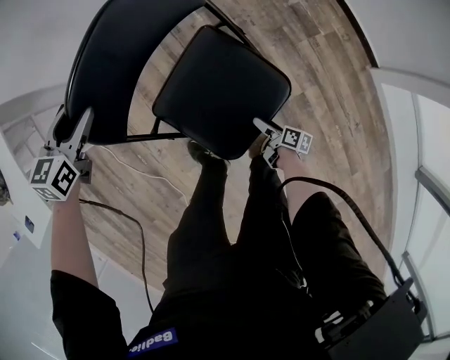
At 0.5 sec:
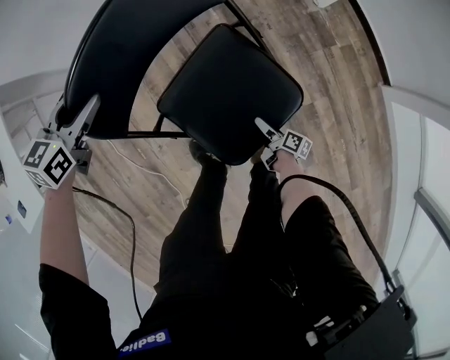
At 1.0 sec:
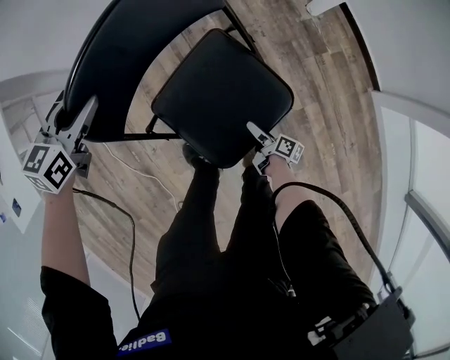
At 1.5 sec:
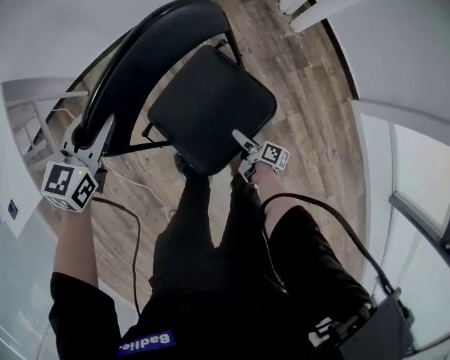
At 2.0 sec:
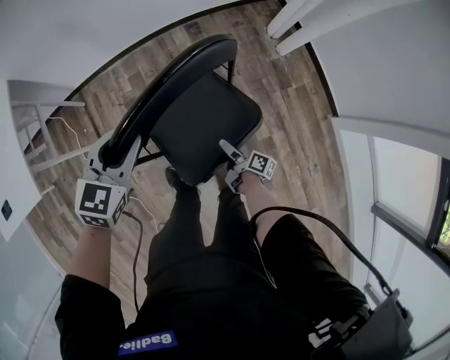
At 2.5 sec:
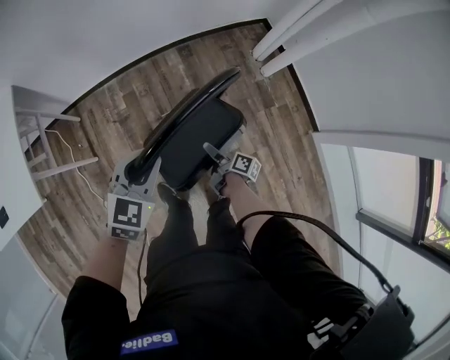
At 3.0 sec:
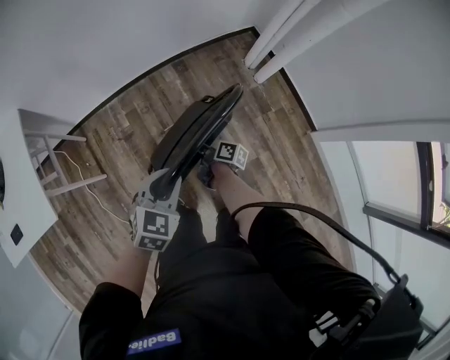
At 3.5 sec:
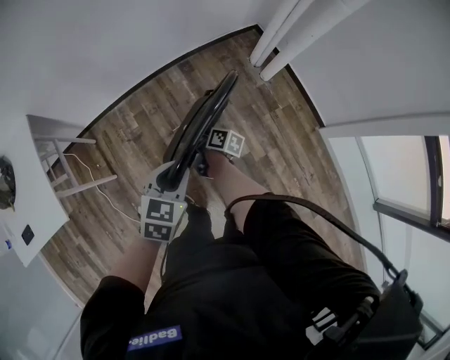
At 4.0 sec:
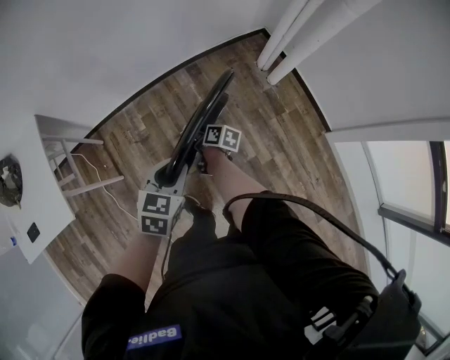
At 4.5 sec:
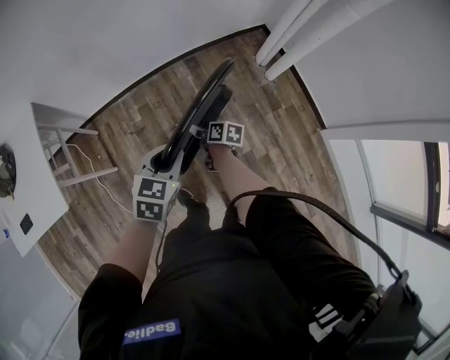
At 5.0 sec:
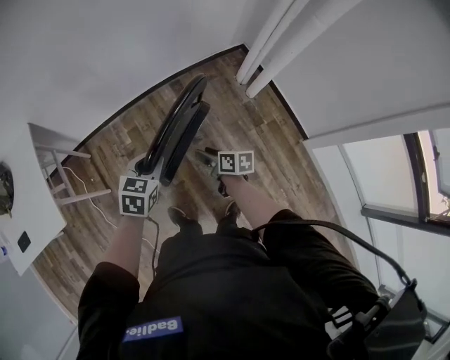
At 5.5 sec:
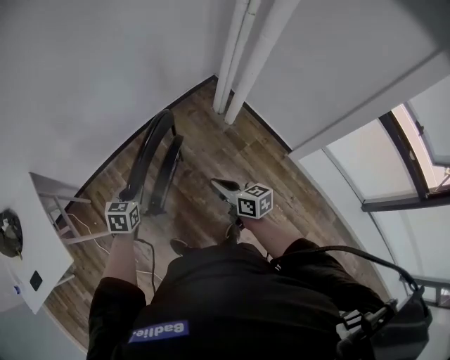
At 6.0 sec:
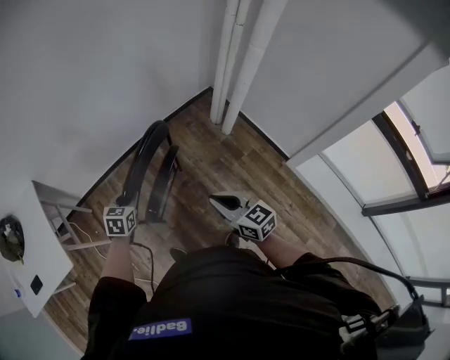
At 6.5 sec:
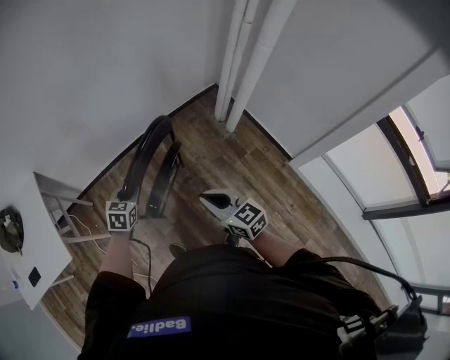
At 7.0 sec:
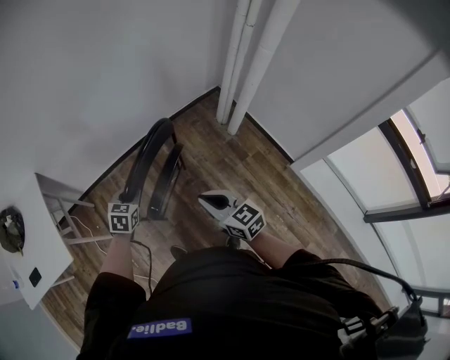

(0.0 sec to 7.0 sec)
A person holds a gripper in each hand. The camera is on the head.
0.0 sec - 2.0 sec: The right gripper heads upward, covering roughly 20 cm; the left gripper heads upward, backward and to the right, covering roughly 15 cm, and closes up.
2.0 sec - 3.5 sec: The right gripper shifts about 25 cm upward, forward and to the left, while the left gripper heads to the right, upward and backward, covering some 10 cm.
3.5 sec - 5.0 sec: The left gripper travels to the left by some 5 cm. The right gripper moves upward and backward, about 10 cm, and rotates about 30 degrees.
5.0 sec - 7.0 sec: The right gripper goes about 25 cm upward and backward, rolls counterclockwise, seen from behind, by roughly 40 degrees, and closes.

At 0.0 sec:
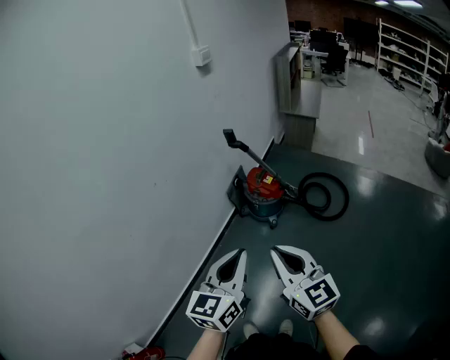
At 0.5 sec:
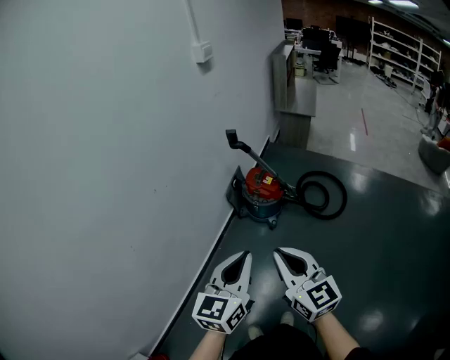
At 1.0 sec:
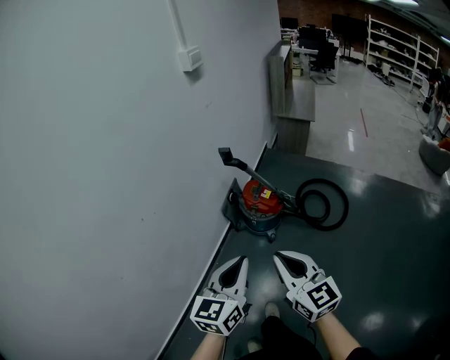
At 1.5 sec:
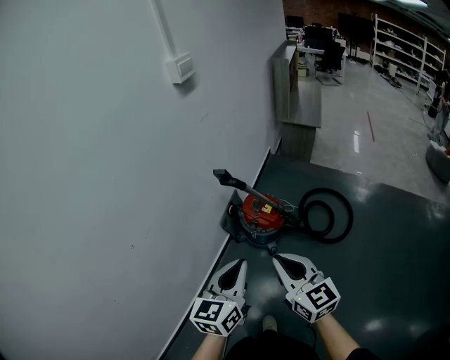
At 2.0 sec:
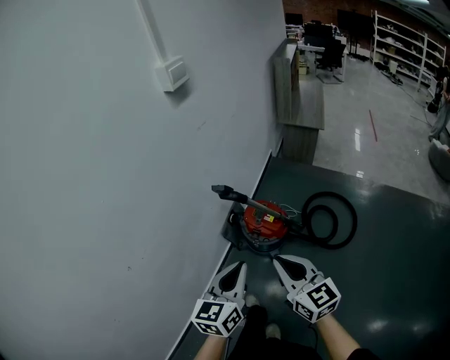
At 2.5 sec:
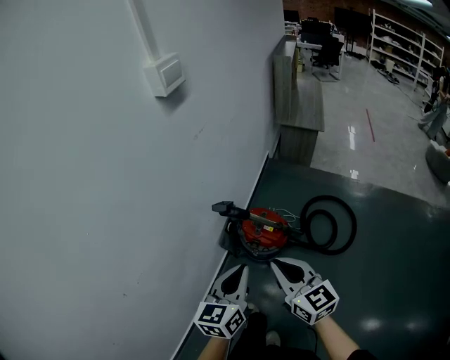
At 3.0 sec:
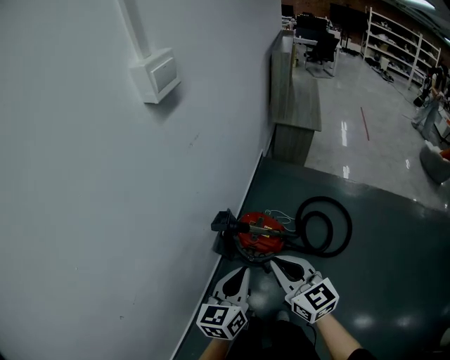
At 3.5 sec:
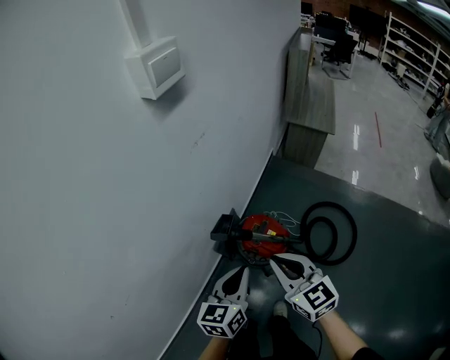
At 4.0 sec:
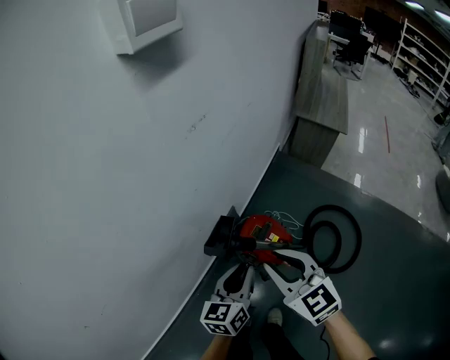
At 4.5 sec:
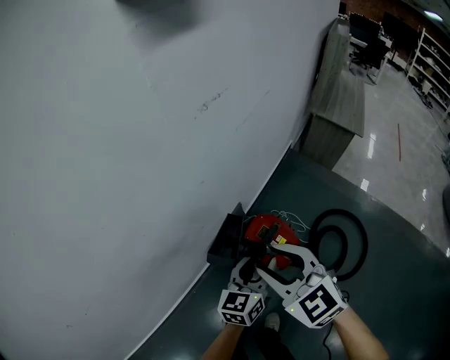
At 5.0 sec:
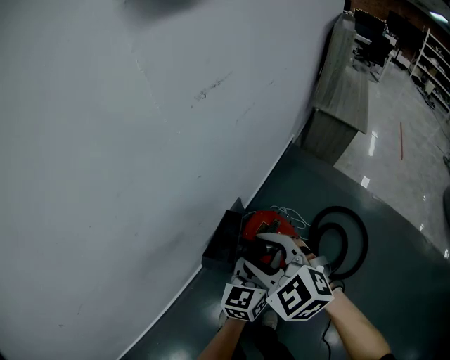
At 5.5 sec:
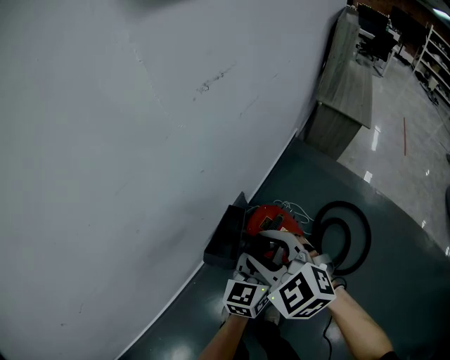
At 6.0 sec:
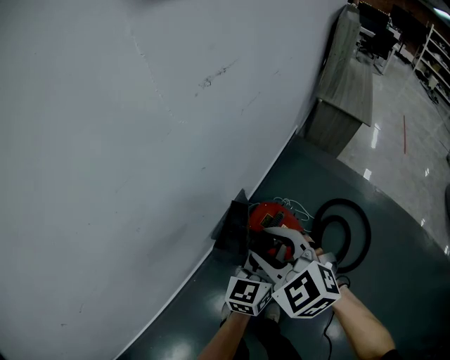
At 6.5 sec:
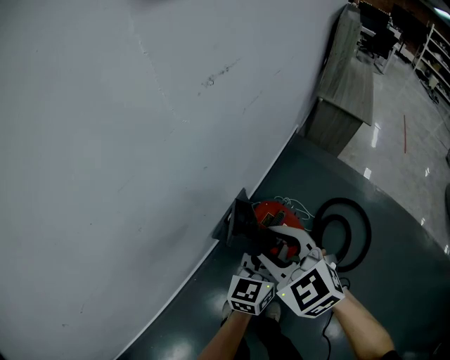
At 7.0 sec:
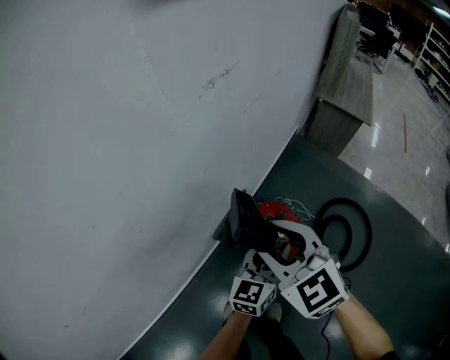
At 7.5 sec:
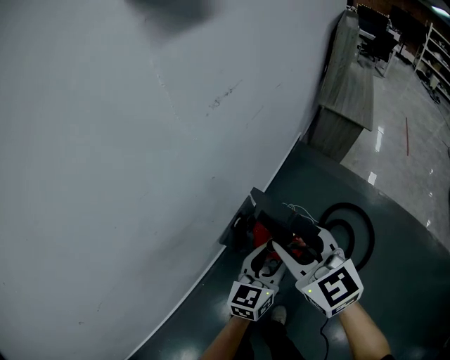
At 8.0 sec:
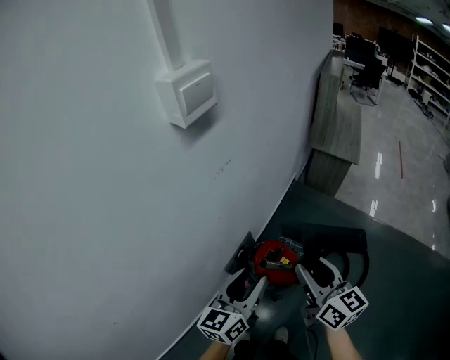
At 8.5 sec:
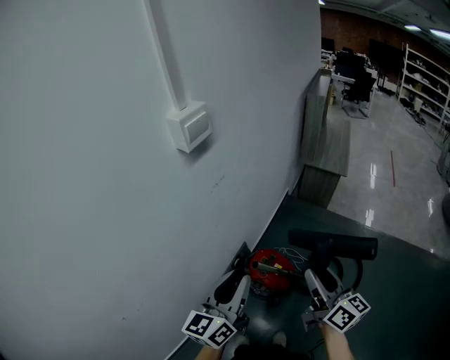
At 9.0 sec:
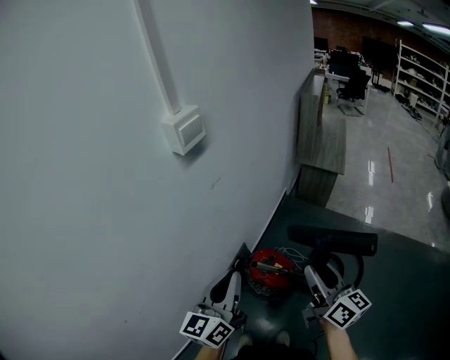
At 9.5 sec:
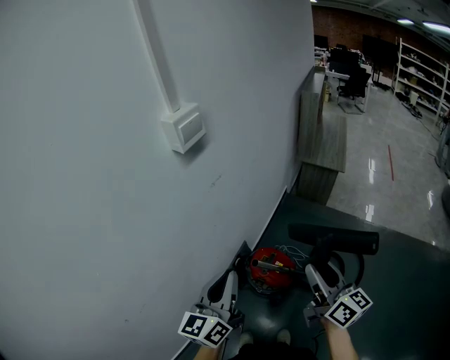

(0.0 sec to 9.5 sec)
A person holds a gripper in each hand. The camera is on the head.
0.0 sec - 2.0 sec: Both grippers move forward, approximately 35 cm.
2.0 sec - 4.0 sec: Both grippers move forward and downward, some 30 cm. The right gripper changes its angle by approximately 30 degrees.
4.0 sec - 5.5 sec: The left gripper goes some 10 cm to the right, forward and downward, and opens. The right gripper shifts about 10 cm downward and forward, rotates roughly 30 degrees, and opens its fingers.
5.5 sec - 7.5 sec: The right gripper moves upward, roughly 10 cm, and swivels about 30 degrees.
7.5 sec - 9.5 sec: The left gripper shifts about 30 cm upward, and closes its fingers. The right gripper goes about 25 cm upward, to the right and backward, and changes its angle by approximately 50 degrees.

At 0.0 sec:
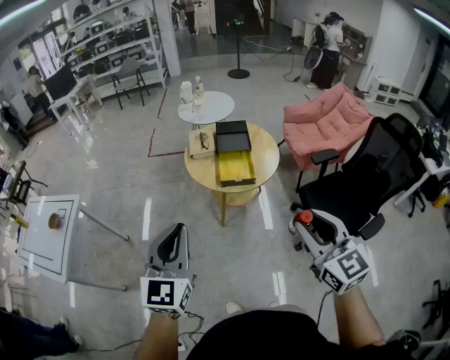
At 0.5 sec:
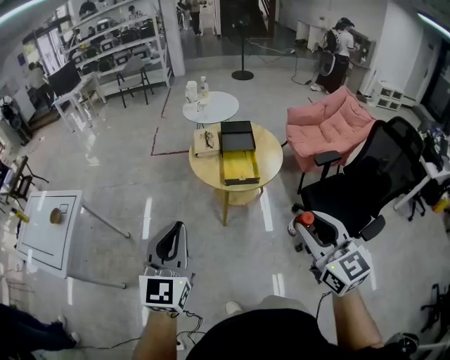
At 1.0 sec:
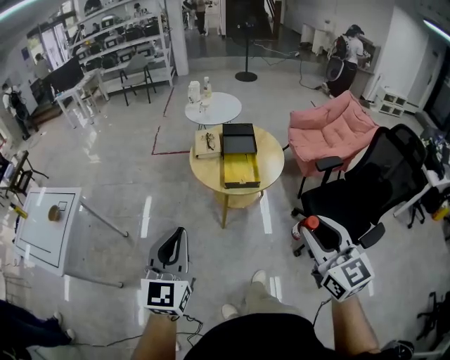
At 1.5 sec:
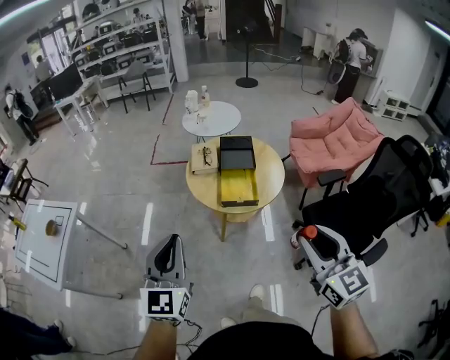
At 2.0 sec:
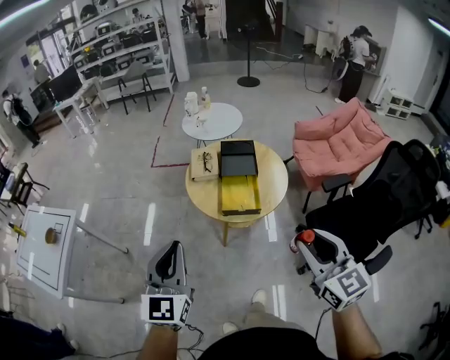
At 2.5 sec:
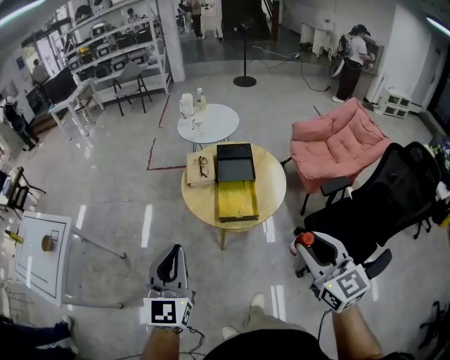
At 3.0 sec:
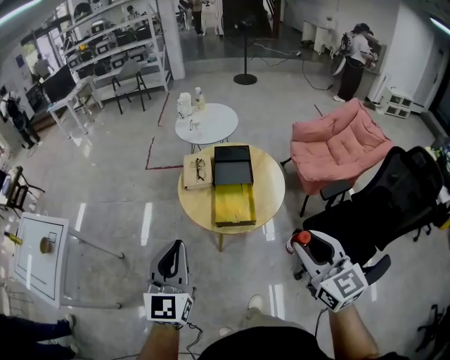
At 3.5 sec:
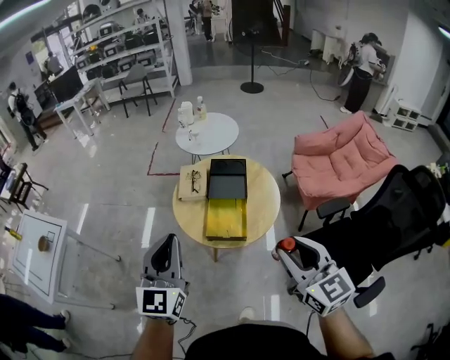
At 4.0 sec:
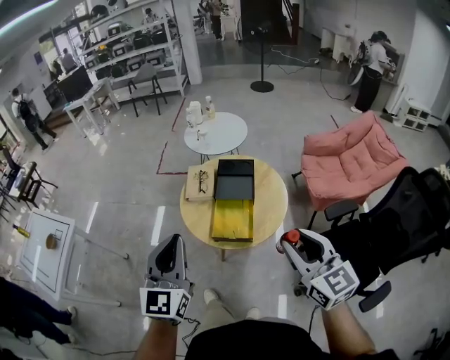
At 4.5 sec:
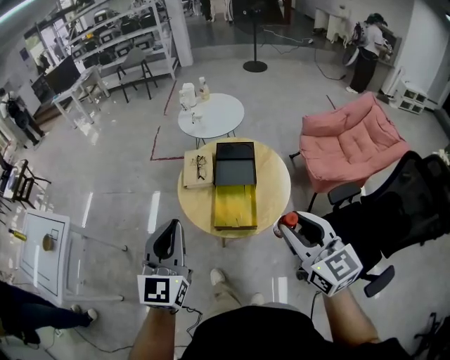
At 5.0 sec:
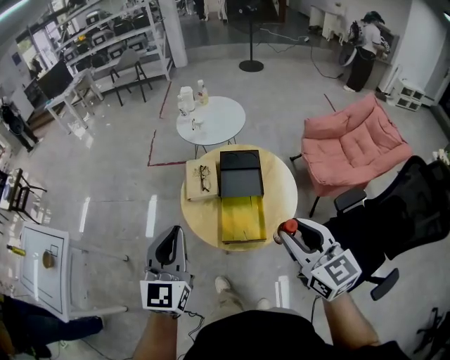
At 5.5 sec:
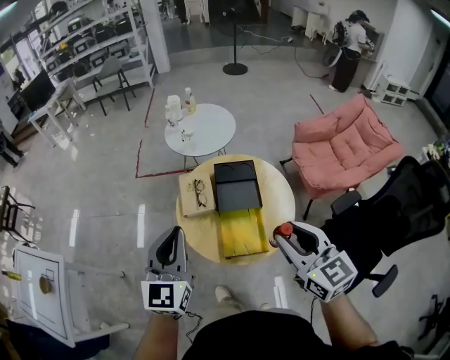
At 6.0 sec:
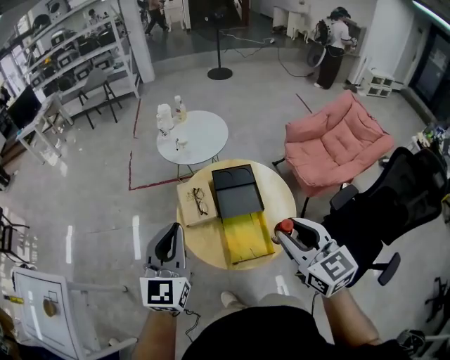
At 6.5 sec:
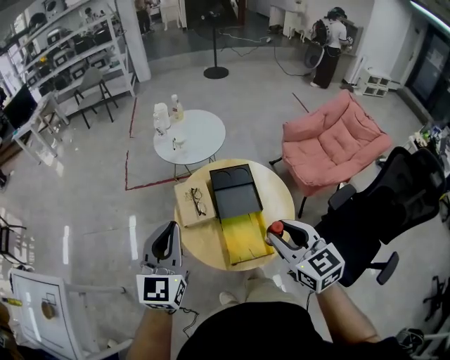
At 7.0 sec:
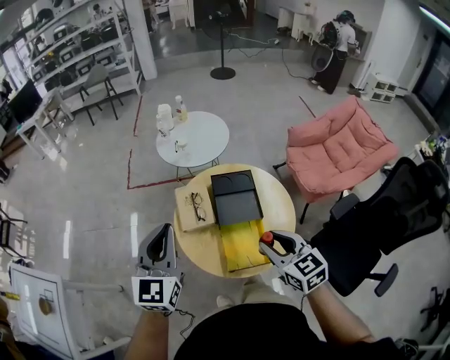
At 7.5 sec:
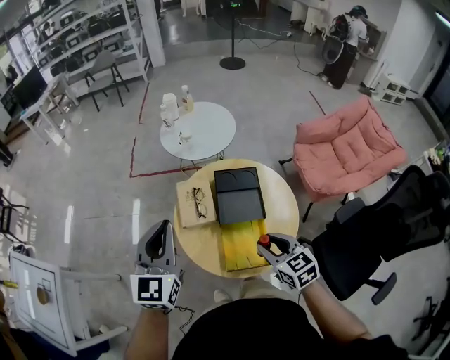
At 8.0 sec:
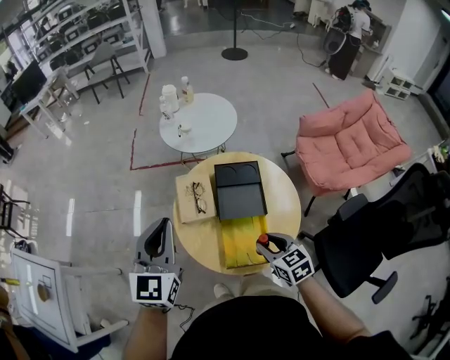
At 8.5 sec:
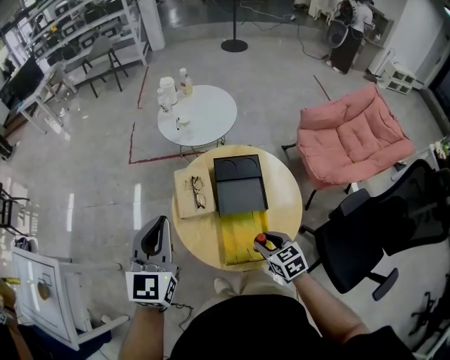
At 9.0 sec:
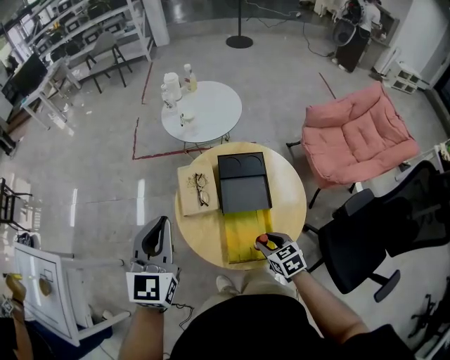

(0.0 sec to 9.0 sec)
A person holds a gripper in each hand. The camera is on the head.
0.0 sec - 2.0 sec: Both grippers move forward, about 15 cm.
2.0 sec - 4.5 sec: The right gripper heads forward, covering about 20 cm; the left gripper moves forward and to the right, roughly 20 cm.
4.5 sec - 7.0 sec: The left gripper travels forward by approximately 25 cm. Meanwhile the right gripper moves forward, downward and to the left, some 25 cm.
7.0 sec - 9.0 sec: The right gripper shifts about 20 cm downward, and turns by some 20 degrees; the left gripper shifts by roughly 5 cm.

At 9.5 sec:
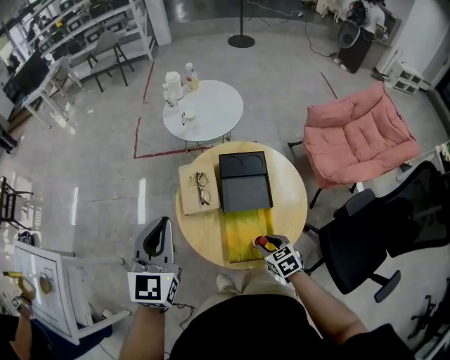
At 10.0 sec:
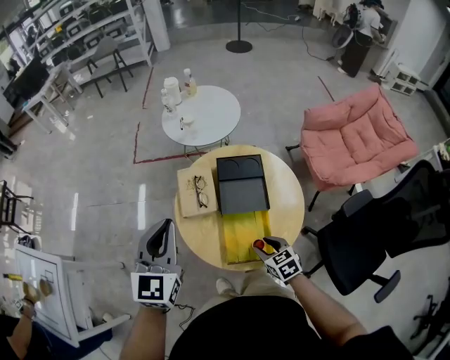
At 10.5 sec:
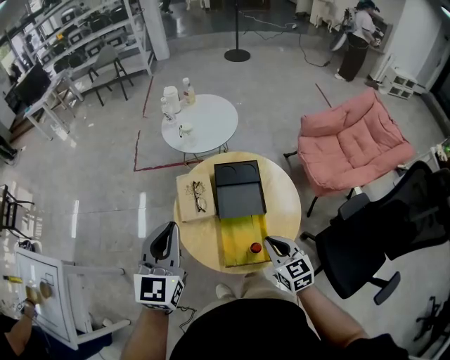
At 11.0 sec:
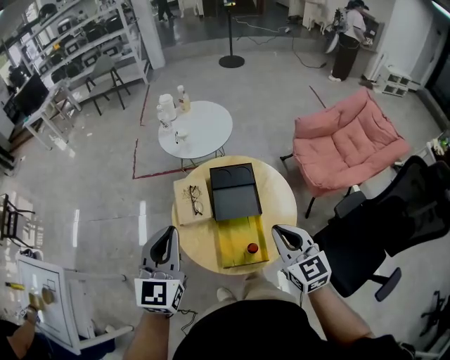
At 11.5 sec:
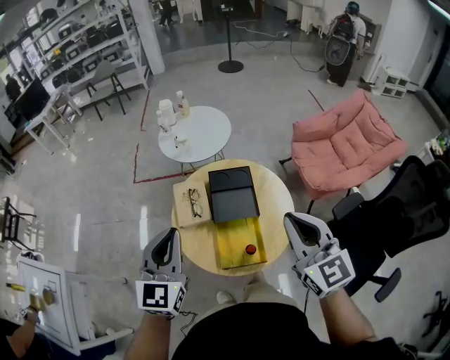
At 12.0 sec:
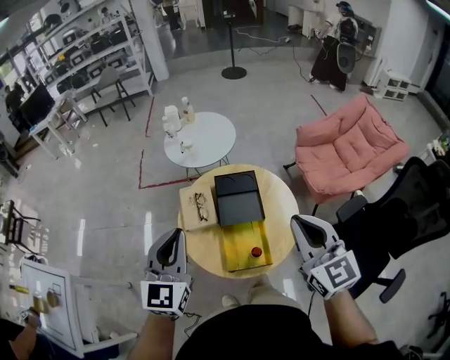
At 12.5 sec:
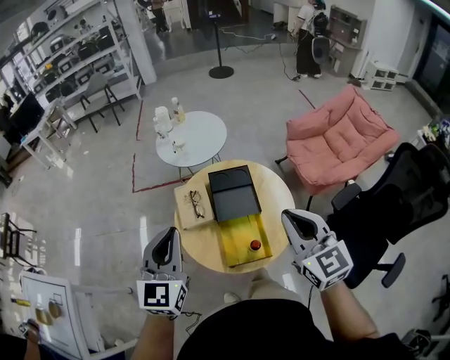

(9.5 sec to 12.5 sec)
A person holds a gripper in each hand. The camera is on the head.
9.5 sec - 11.0 sec: The left gripper ends up approximately 5 cm from where it was. Meanwhile the right gripper is displaced upward by roughly 25 cm, angles its fingers upward, by some 30 degrees, and closes its fingers.
11.0 sec - 12.5 sec: The right gripper heads upward, covering approximately 10 cm.
